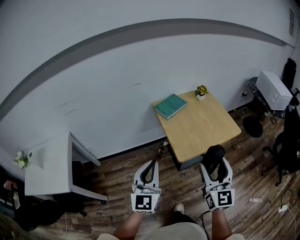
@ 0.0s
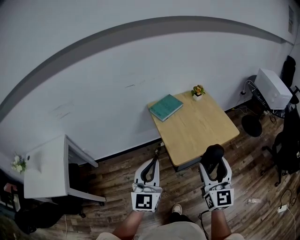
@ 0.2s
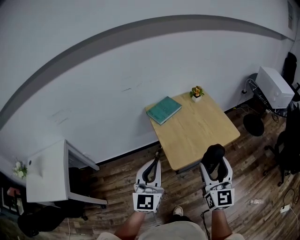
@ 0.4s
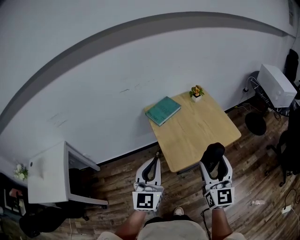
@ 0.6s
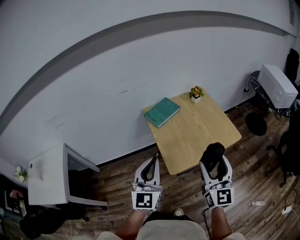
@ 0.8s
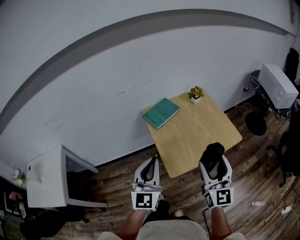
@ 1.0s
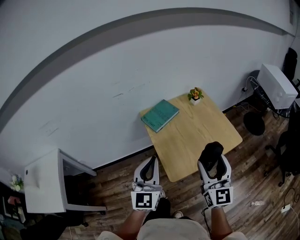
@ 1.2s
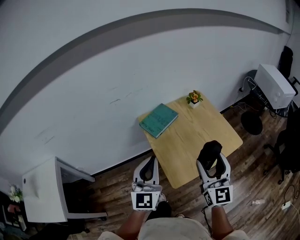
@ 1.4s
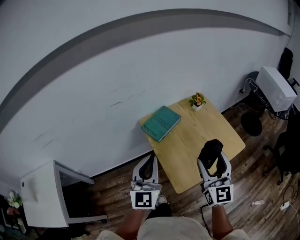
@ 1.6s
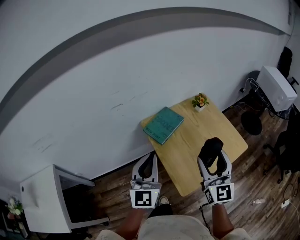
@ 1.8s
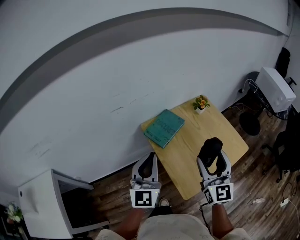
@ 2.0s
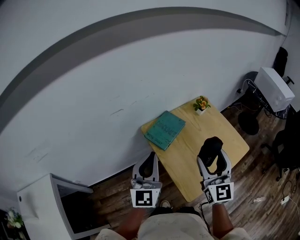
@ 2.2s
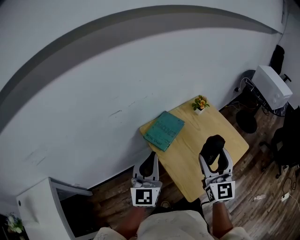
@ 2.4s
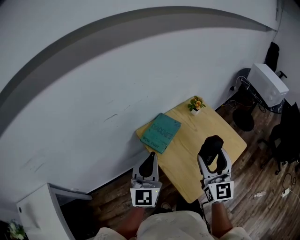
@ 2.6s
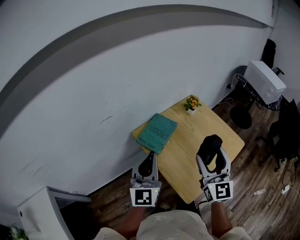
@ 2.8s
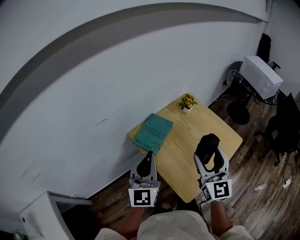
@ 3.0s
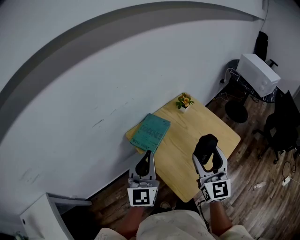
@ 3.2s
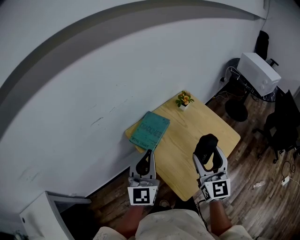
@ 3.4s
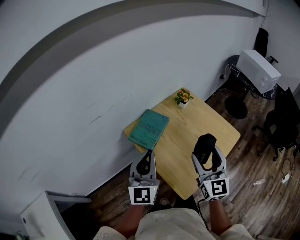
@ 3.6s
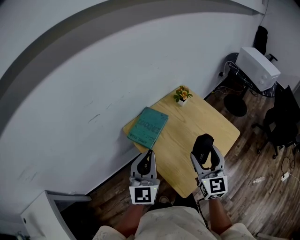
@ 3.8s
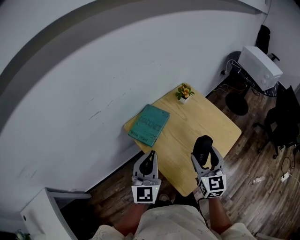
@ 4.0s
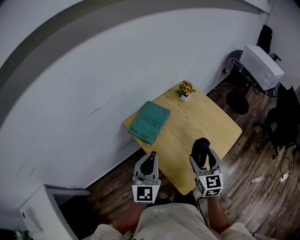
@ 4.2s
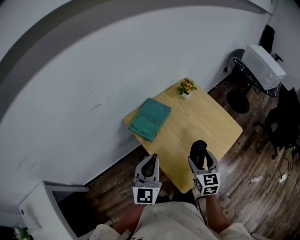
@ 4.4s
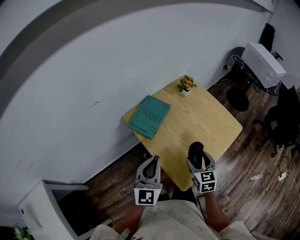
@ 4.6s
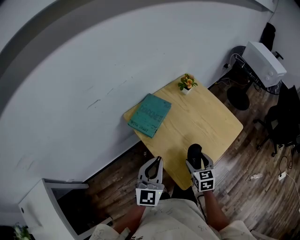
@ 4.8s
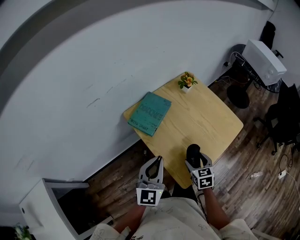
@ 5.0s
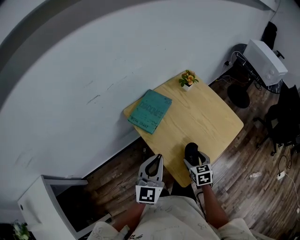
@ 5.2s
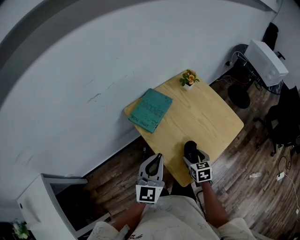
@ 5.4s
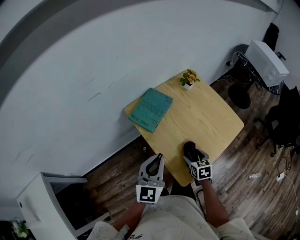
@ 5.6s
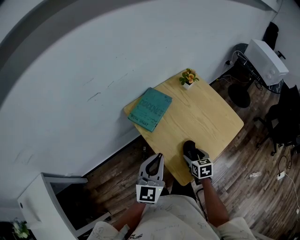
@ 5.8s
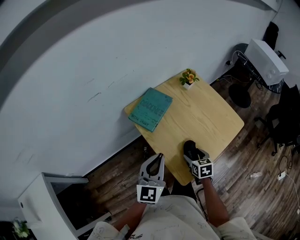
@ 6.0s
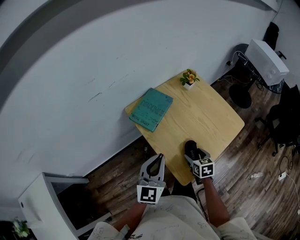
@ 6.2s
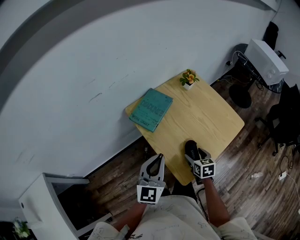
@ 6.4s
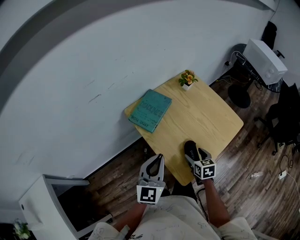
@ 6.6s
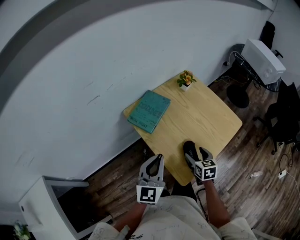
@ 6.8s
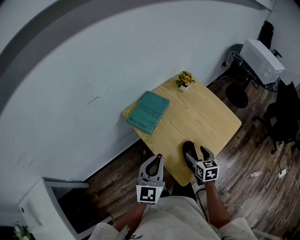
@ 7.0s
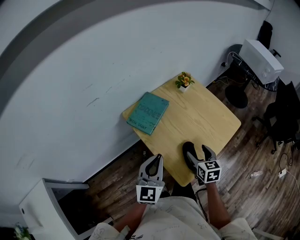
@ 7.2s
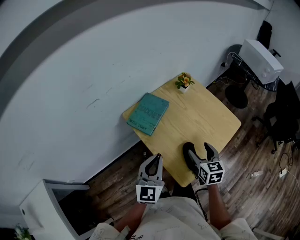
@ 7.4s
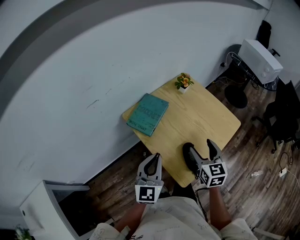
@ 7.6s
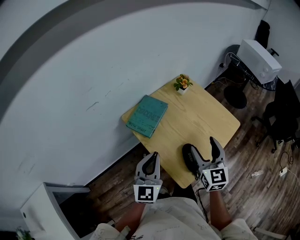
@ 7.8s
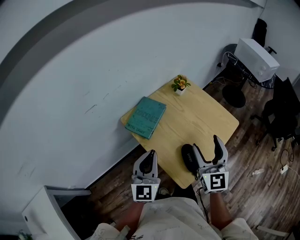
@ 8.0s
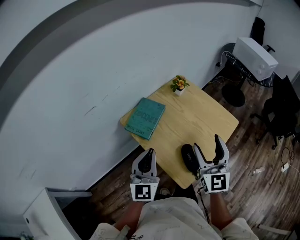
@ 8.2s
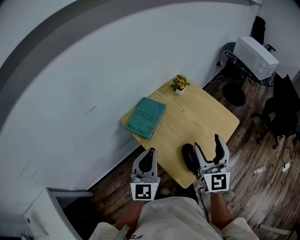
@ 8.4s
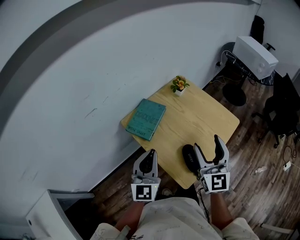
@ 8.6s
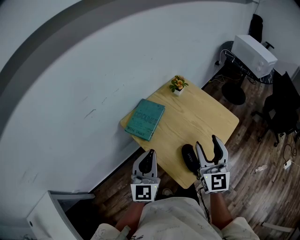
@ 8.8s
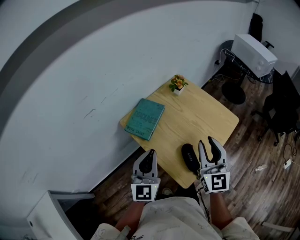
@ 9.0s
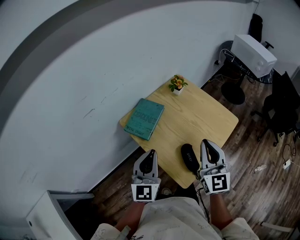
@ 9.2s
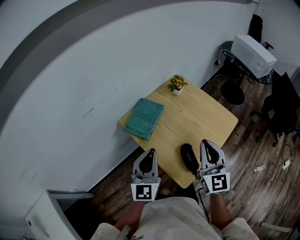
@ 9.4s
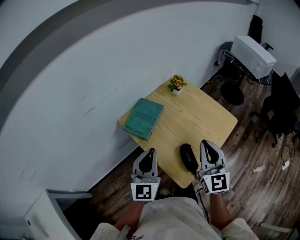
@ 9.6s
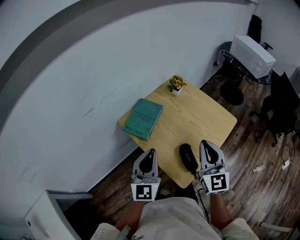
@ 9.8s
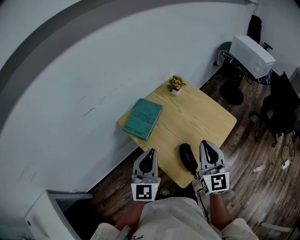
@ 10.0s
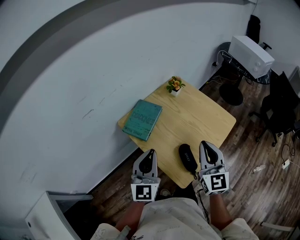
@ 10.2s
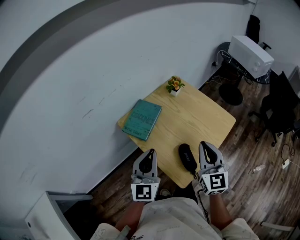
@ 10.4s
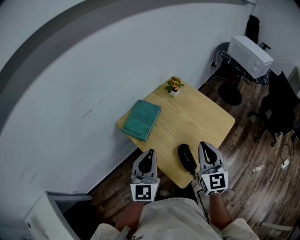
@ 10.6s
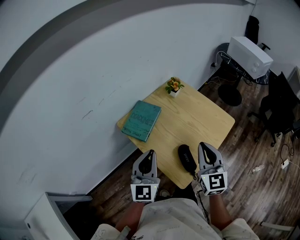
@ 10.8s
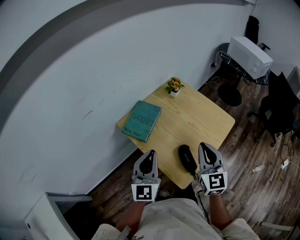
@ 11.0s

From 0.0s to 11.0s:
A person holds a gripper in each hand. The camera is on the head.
From 0.0s to 1.6s: Both grippers travel together forward, roughly 25 cm.
From 1.6s to 3.2s: The left gripper is displaced forward by about 10 cm, while the right gripper is displaced forward by about 5 cm.
From 3.2s to 4.8s: The right gripper moves downward, approximately 25 cm, and angles its fingers downward, by about 40 degrees. Meanwhile the left gripper heads downward, covering some 10 cm.
From 4.8s to 6.2s: The right gripper is displaced downward by some 5 cm.
From 6.2s to 7.8s: The right gripper goes roughly 20 cm upward, and tips its fingers upward by about 40 degrees.
From 7.8s to 9.4s: The right gripper ends up roughly 5 cm from where it was, and closes up.
From 9.4s to 11.0s: The grippers make only small movements.

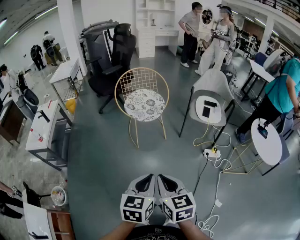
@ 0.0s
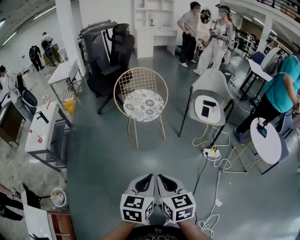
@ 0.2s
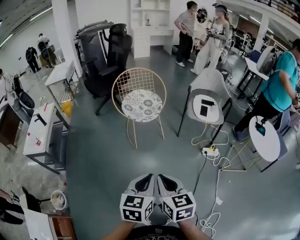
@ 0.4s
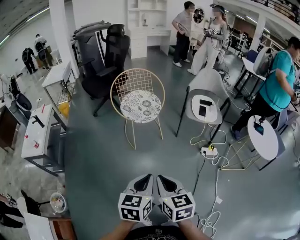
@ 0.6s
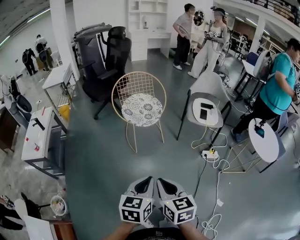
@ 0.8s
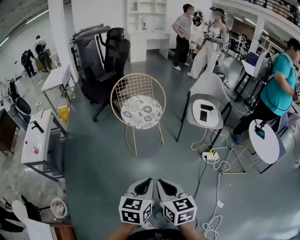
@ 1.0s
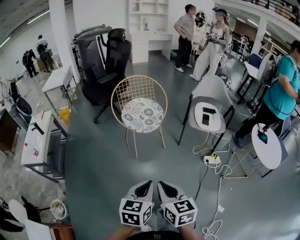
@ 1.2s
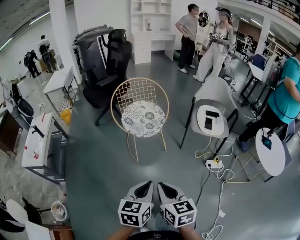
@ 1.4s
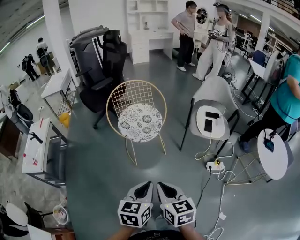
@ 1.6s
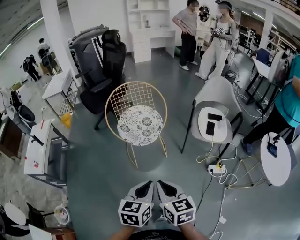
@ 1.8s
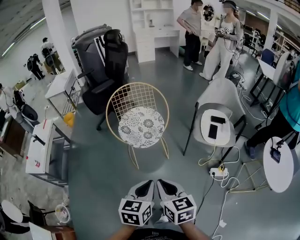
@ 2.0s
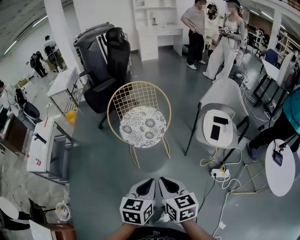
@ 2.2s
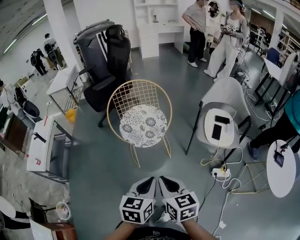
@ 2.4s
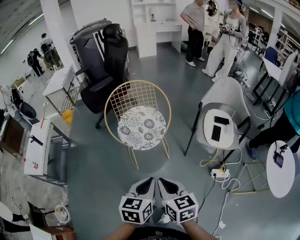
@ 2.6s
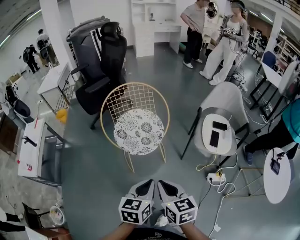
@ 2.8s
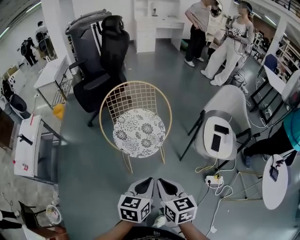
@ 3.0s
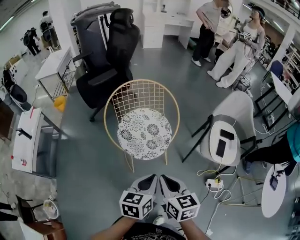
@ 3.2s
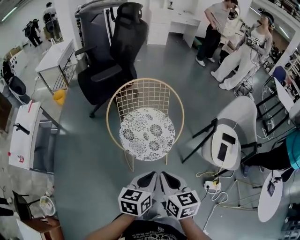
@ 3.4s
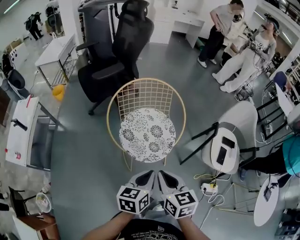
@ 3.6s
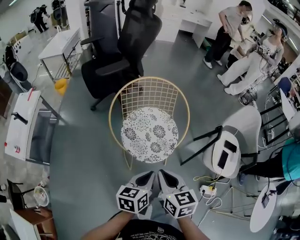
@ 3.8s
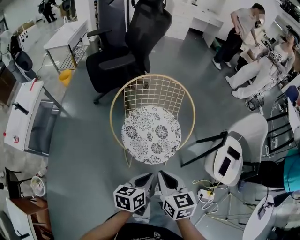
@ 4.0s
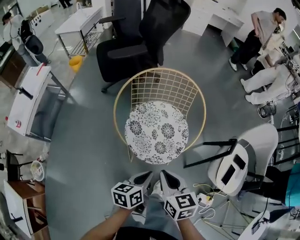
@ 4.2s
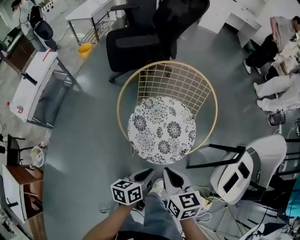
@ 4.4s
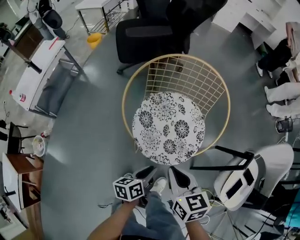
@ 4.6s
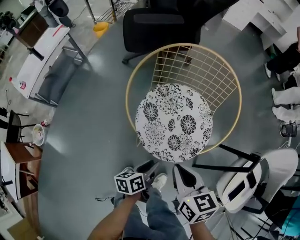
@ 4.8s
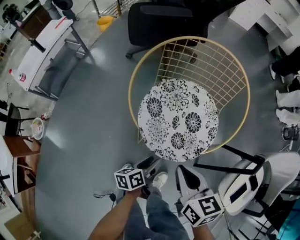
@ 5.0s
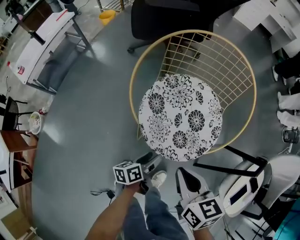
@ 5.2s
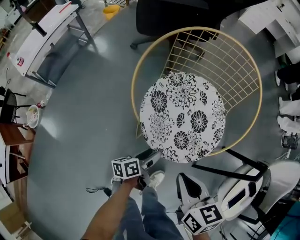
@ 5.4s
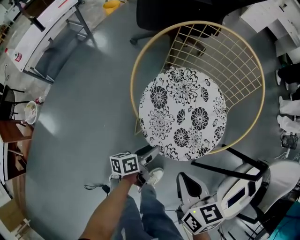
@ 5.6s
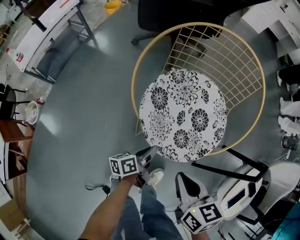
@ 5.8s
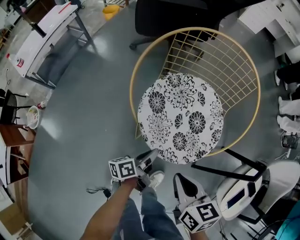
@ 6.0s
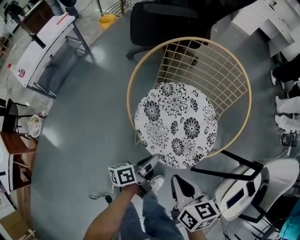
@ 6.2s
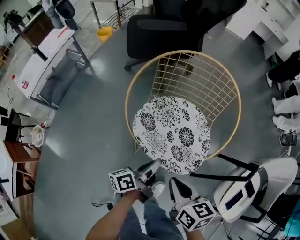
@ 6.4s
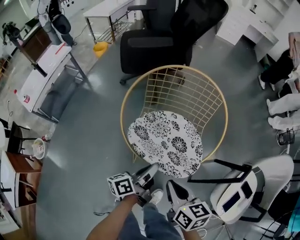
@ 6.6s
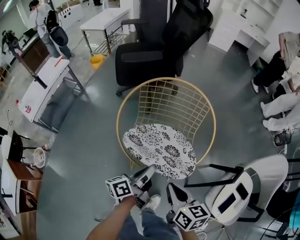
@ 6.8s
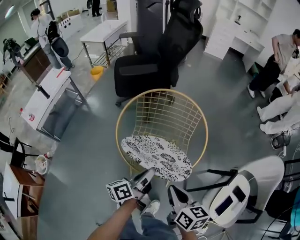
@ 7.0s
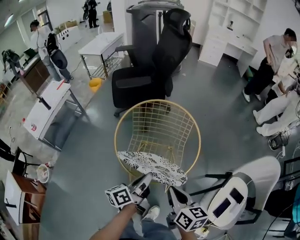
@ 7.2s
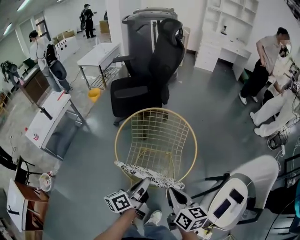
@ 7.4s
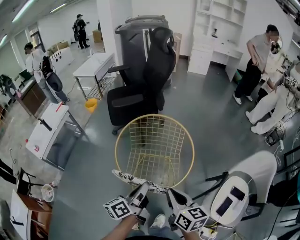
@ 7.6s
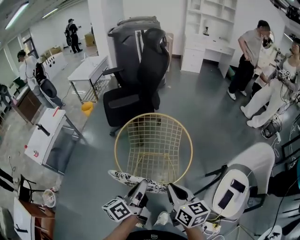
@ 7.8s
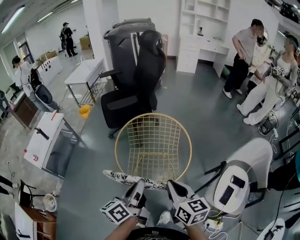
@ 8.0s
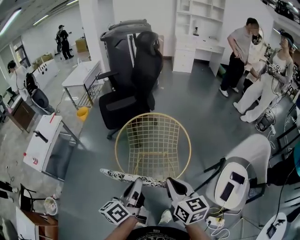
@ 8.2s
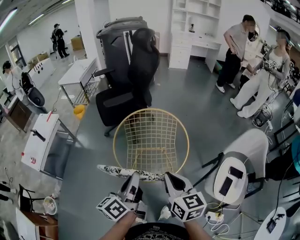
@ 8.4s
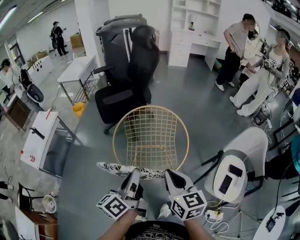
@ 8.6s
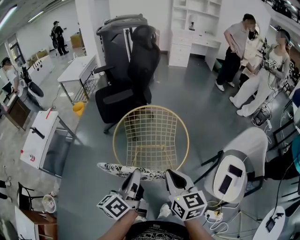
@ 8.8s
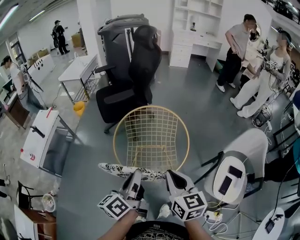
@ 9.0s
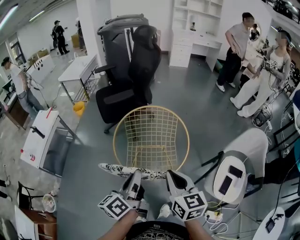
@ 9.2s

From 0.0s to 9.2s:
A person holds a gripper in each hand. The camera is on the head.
From 0.0s to 1.6s: Both grippers move forward, about 15 cm.
From 1.6s to 3.0s: The two grippers go roughly 20 cm forward.
From 3.0s to 4.6s: The right gripper is displaced forward and downward by some 25 cm, and turns by roughly 30 degrees, while the left gripper shifts some 30 cm downward and forward, and twists approximately 50 degrees counterclockwise, seen from behind.
From 4.6s to 6.2s: Both grippers move downward, approximately 5 cm. The left gripper rotates roughly 30 degrees, and opens, then closes once more.
From 6.2s to 7.6s: The right gripper travels upward by approximately 20 cm, and swivels roughly 20 degrees, while the left gripper moves upward, about 30 cm.
From 7.6s to 9.2s: The left gripper shifts roughly 10 cm upward and to the left. The right gripper shifts approximately 5 cm upward.

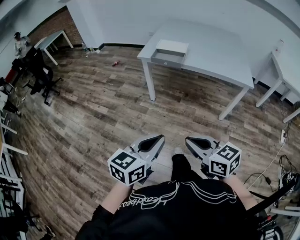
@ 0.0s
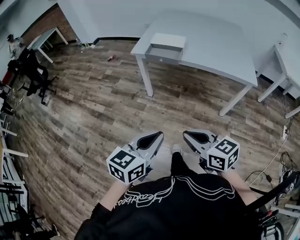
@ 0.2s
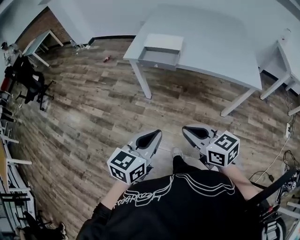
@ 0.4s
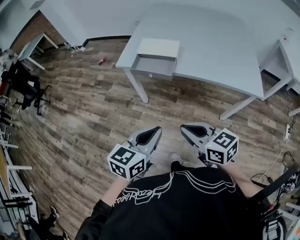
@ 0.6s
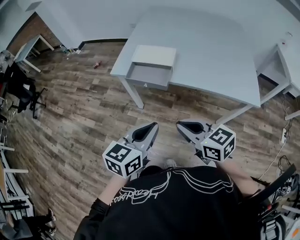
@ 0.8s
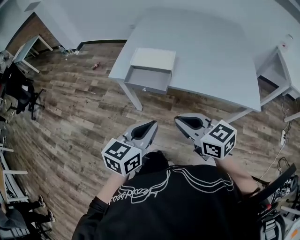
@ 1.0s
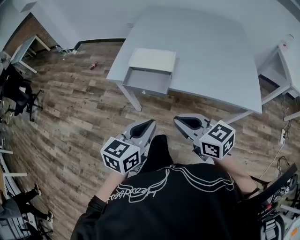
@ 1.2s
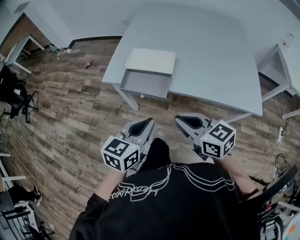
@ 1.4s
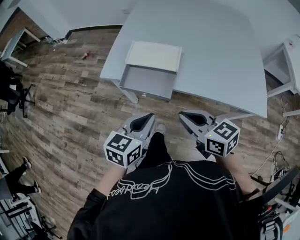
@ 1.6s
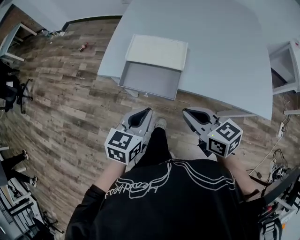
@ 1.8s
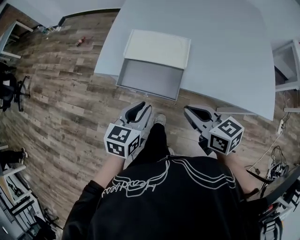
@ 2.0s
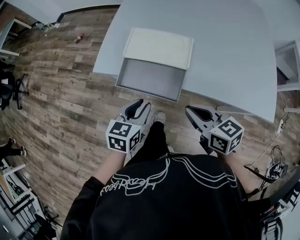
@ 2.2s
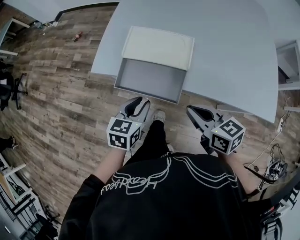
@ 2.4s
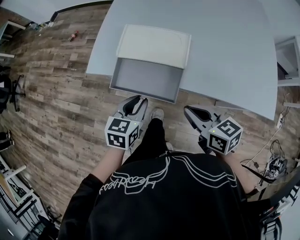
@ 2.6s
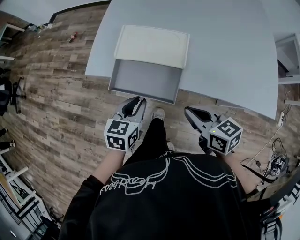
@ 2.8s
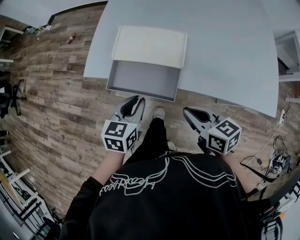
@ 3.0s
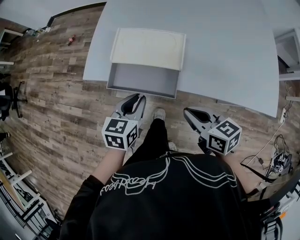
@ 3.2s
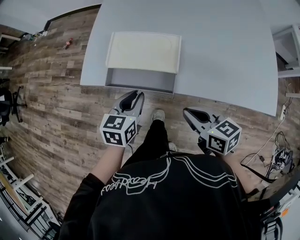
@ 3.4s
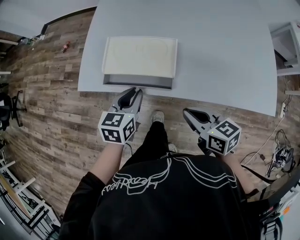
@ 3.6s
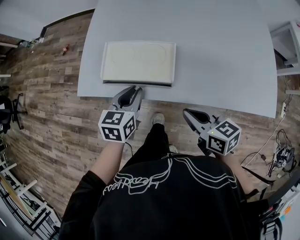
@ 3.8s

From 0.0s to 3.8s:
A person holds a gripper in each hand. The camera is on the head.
From 0.0s to 1.2s: The pair of grippers is taken forward, some 40 cm.
From 1.2s to 2.6s: The grippers both shift forward and downward by about 20 cm. The right gripper rotates some 20 degrees. The left gripper opens.
From 2.6s to 3.8s: The left gripper moves forward, about 10 cm. Meanwhile the right gripper ends up approximately 5 cm from where it was.
